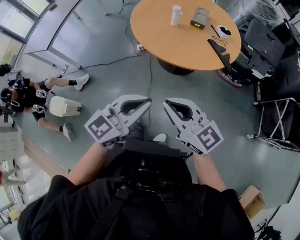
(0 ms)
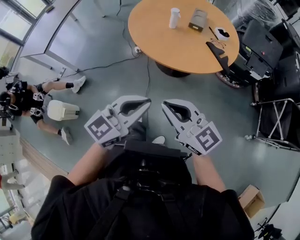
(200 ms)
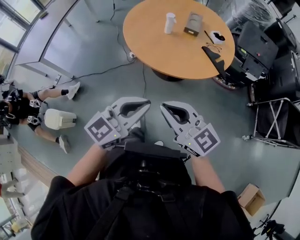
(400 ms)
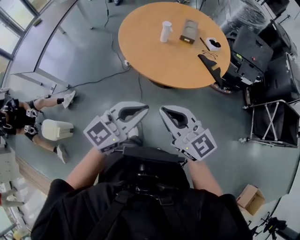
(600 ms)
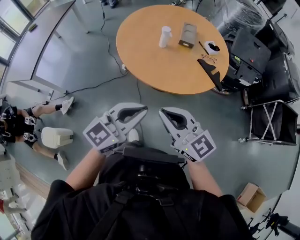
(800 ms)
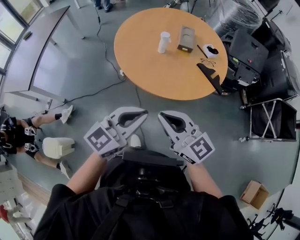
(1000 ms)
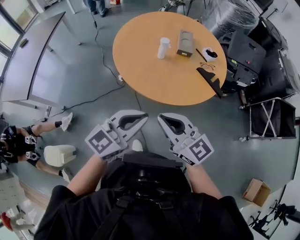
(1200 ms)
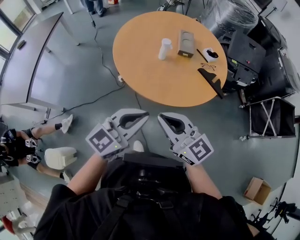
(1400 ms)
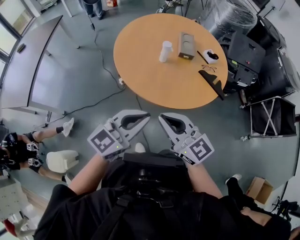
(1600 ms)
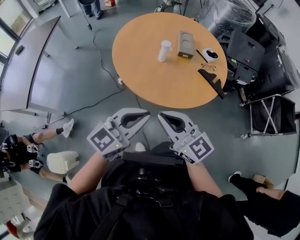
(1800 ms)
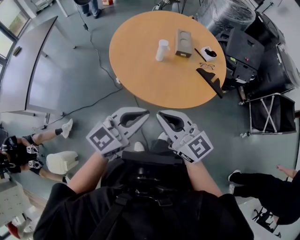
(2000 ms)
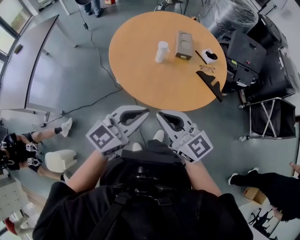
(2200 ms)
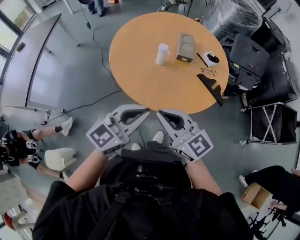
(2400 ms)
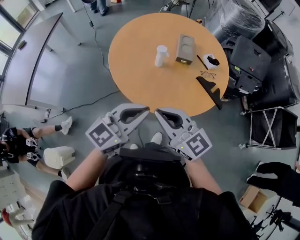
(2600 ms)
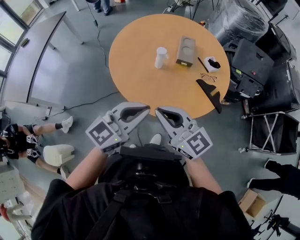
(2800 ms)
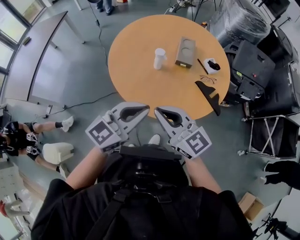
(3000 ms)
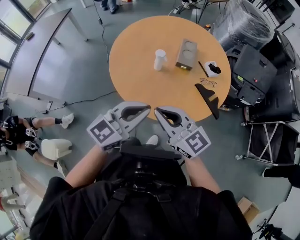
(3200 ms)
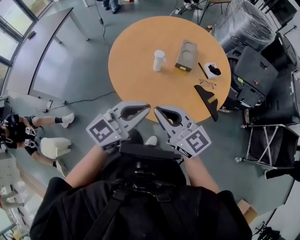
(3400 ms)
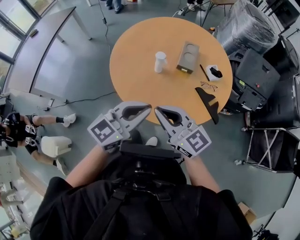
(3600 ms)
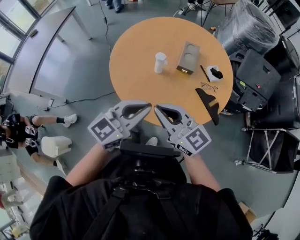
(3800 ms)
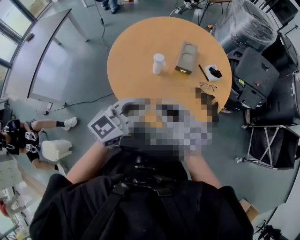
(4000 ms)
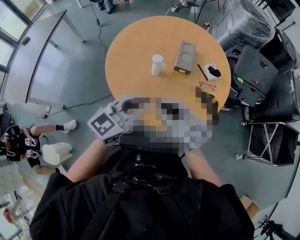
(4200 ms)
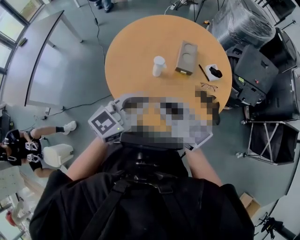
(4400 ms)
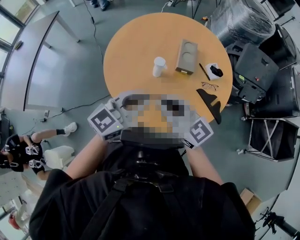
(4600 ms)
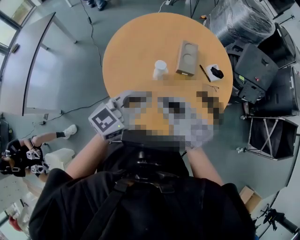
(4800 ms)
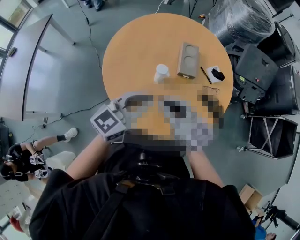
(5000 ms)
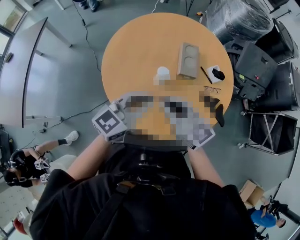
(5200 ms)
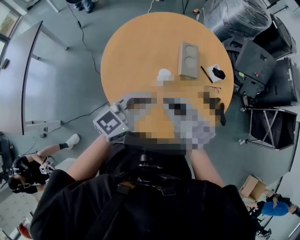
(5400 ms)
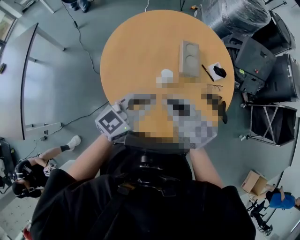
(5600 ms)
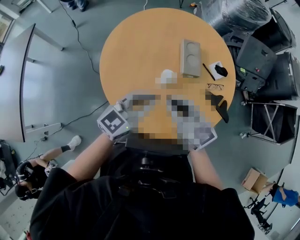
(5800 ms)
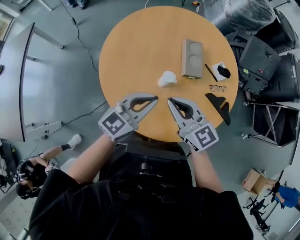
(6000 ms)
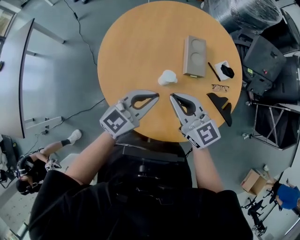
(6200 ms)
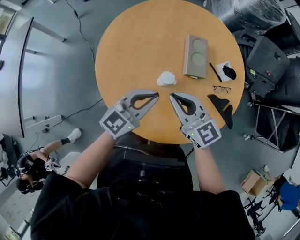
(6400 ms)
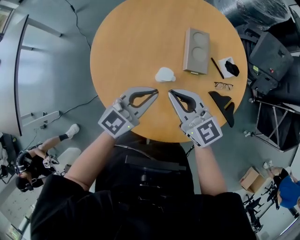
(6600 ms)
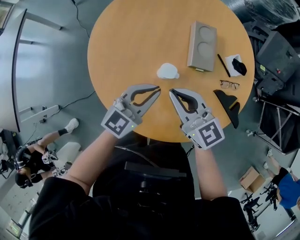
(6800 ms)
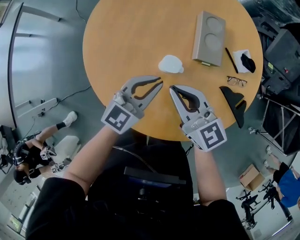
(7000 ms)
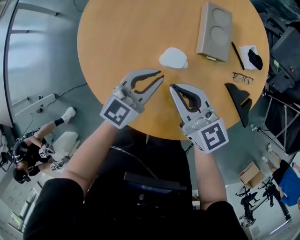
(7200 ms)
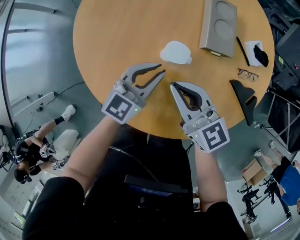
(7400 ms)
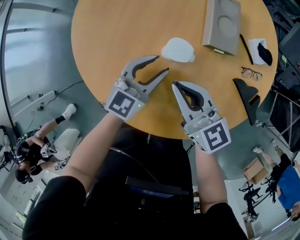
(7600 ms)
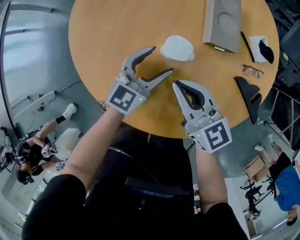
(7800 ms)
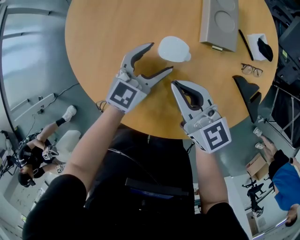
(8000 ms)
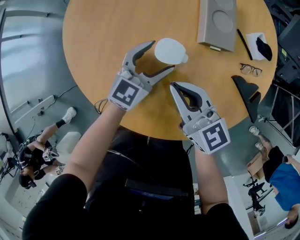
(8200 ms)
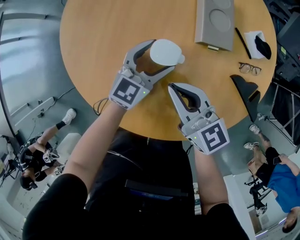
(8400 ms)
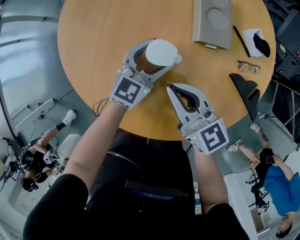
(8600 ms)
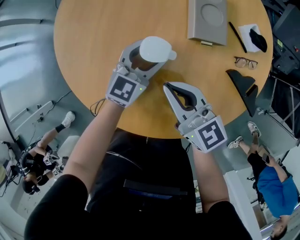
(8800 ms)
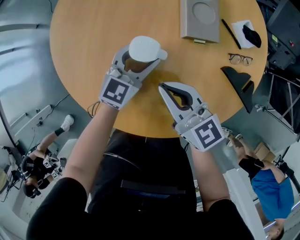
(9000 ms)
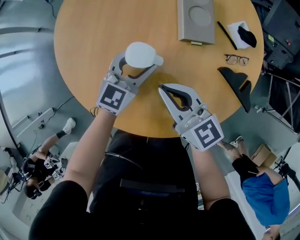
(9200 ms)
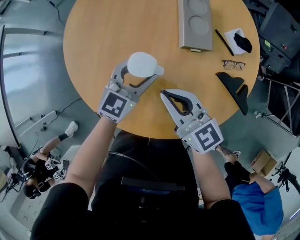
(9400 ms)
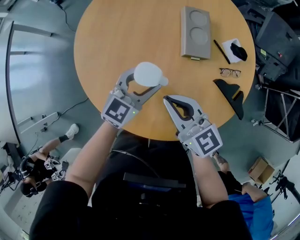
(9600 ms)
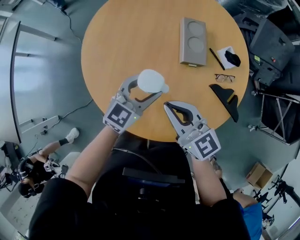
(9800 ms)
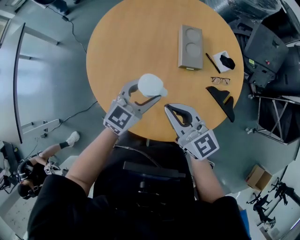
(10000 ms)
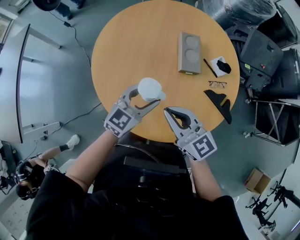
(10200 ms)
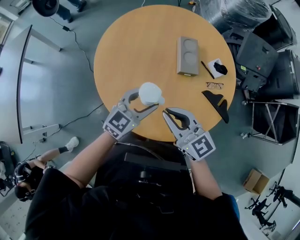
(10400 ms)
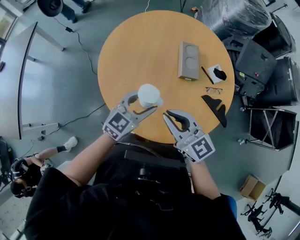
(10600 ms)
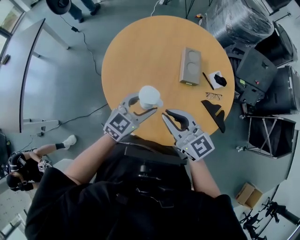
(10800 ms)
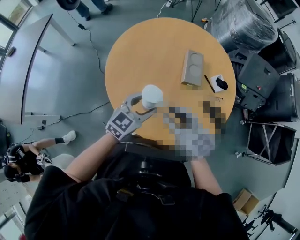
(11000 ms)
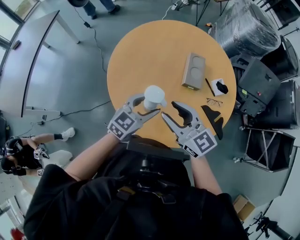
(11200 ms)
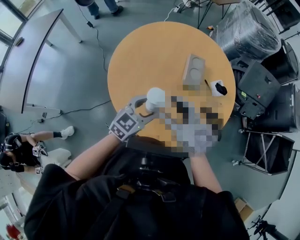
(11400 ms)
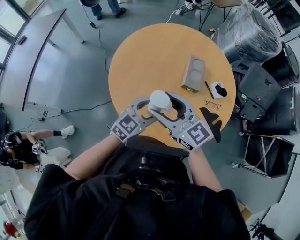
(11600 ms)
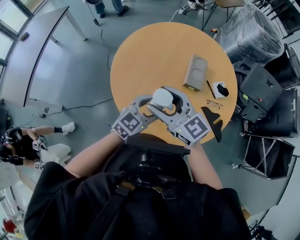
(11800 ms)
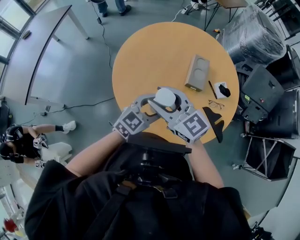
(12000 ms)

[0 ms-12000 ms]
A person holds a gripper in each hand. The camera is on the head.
0 ms to 1600 ms: The grippers both shift forward and to the left by roughly 35 cm.
1600 ms to 3000 ms: The two grippers go approximately 20 cm forward and to the right.
3000 ms to 4400 ms: Both grippers travel together forward, roughly 15 cm.
4400 ms to 6000 ms: The left gripper goes some 25 cm forward, to the left and downward. Meanwhile the right gripper heads forward, downward and to the left, covering approximately 25 cm.
6000 ms to 7600 ms: Both grippers move downward, roughly 30 cm. The left gripper opens its fingers.
7600 ms to 9000 ms: The left gripper shifts approximately 5 cm to the right.
9000 ms to 10400 ms: Both grippers travel together upward and backward, approximately 30 cm.
10400 ms to 12000 ms: The left gripper shifts roughly 10 cm backward and upward; the right gripper travels upward by approximately 10 cm, rotates about 20 degrees, and opens its fingers.

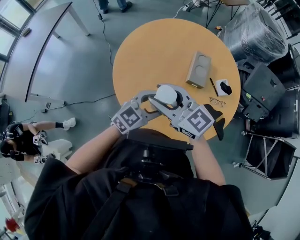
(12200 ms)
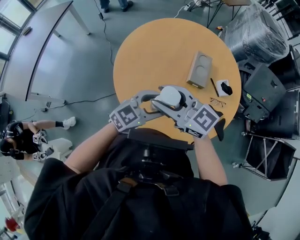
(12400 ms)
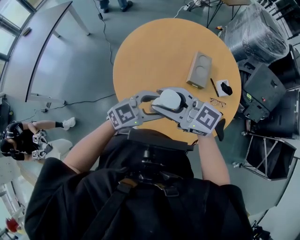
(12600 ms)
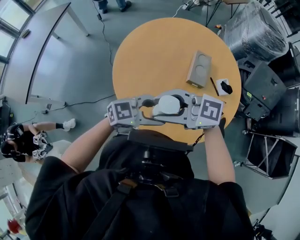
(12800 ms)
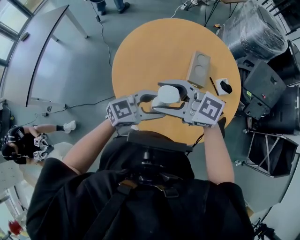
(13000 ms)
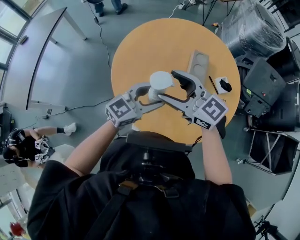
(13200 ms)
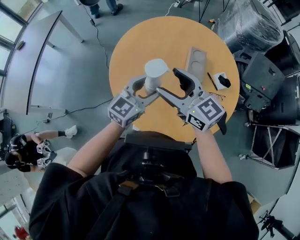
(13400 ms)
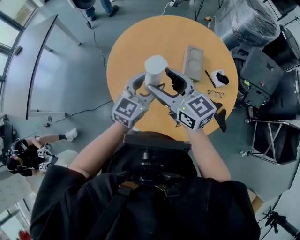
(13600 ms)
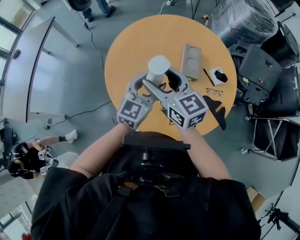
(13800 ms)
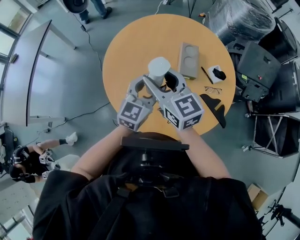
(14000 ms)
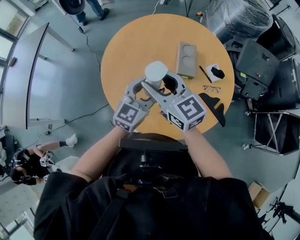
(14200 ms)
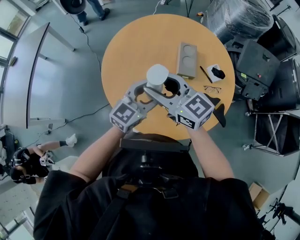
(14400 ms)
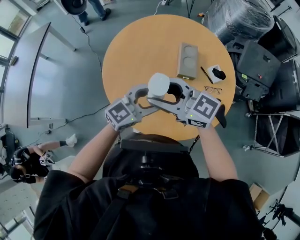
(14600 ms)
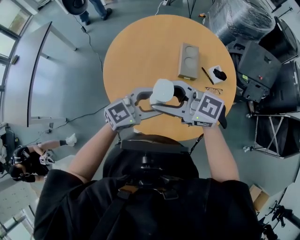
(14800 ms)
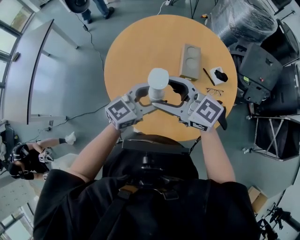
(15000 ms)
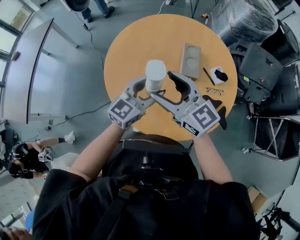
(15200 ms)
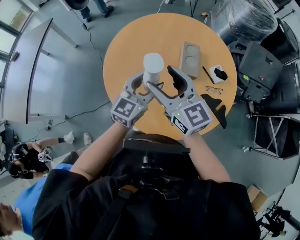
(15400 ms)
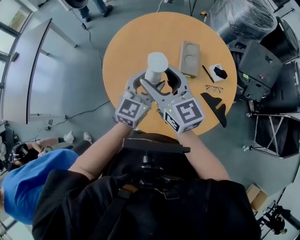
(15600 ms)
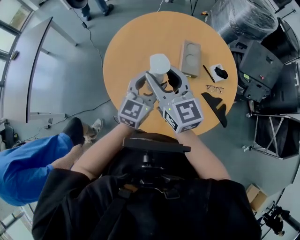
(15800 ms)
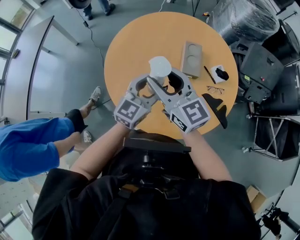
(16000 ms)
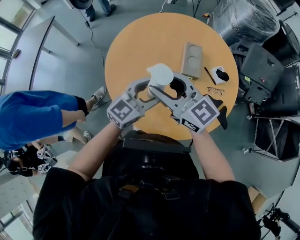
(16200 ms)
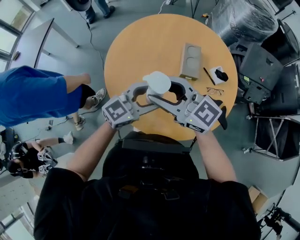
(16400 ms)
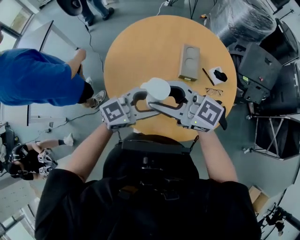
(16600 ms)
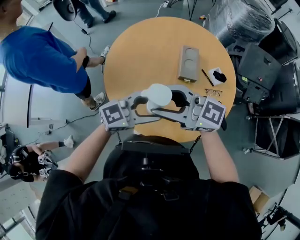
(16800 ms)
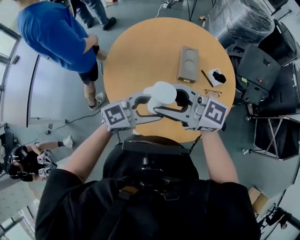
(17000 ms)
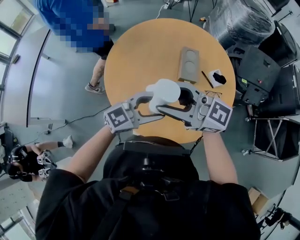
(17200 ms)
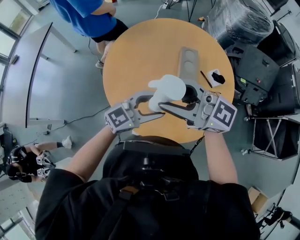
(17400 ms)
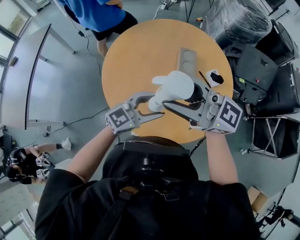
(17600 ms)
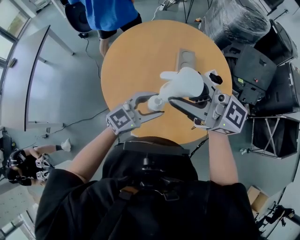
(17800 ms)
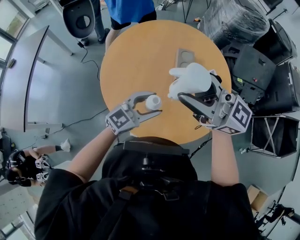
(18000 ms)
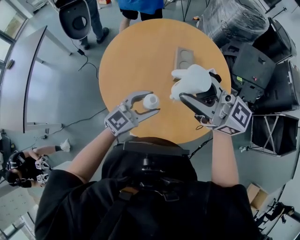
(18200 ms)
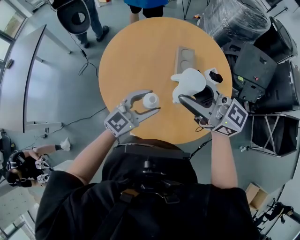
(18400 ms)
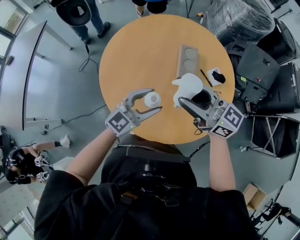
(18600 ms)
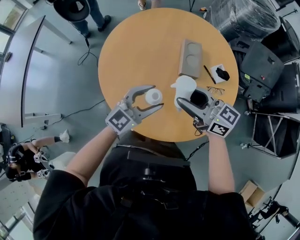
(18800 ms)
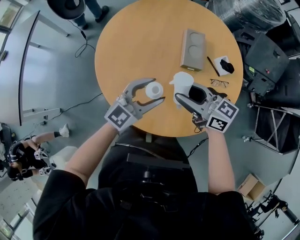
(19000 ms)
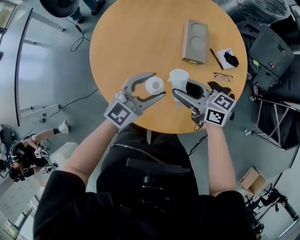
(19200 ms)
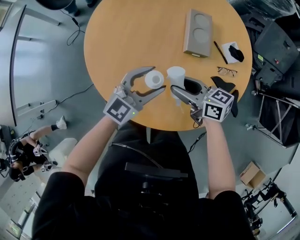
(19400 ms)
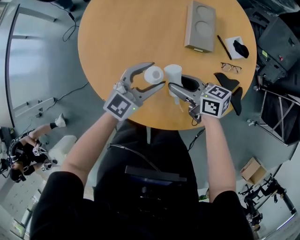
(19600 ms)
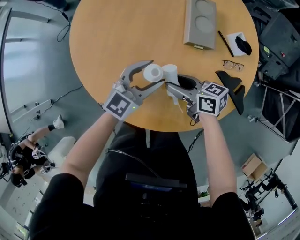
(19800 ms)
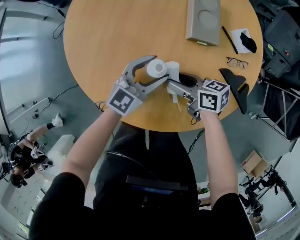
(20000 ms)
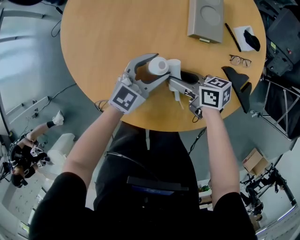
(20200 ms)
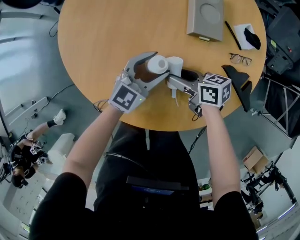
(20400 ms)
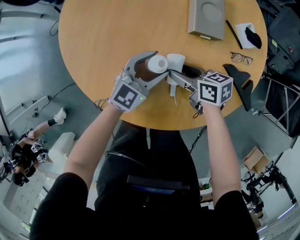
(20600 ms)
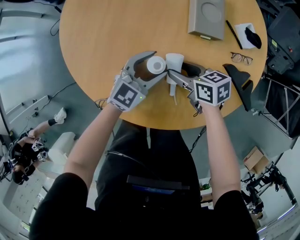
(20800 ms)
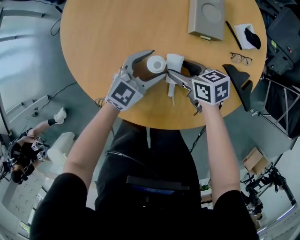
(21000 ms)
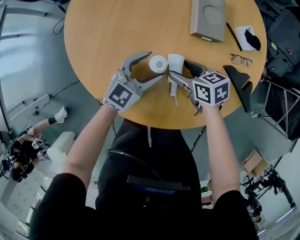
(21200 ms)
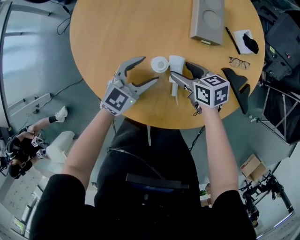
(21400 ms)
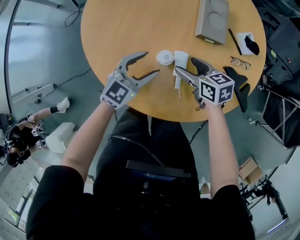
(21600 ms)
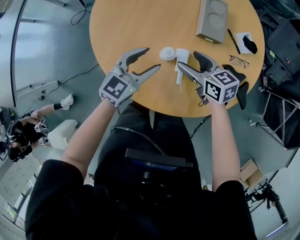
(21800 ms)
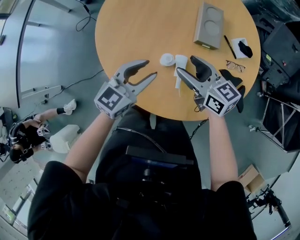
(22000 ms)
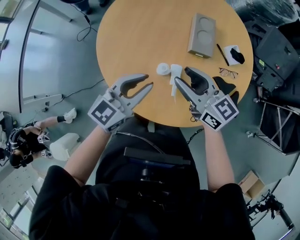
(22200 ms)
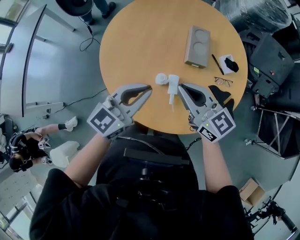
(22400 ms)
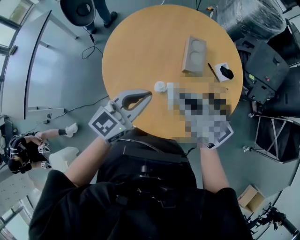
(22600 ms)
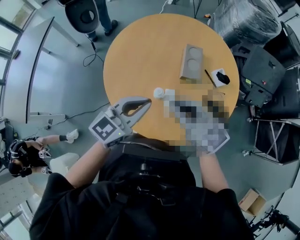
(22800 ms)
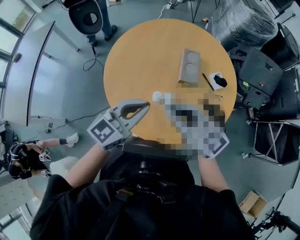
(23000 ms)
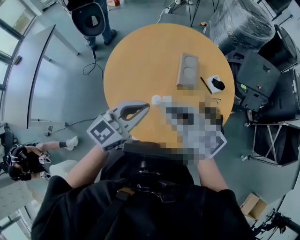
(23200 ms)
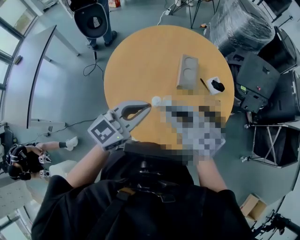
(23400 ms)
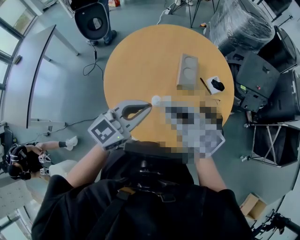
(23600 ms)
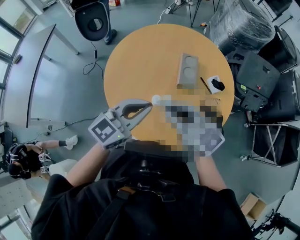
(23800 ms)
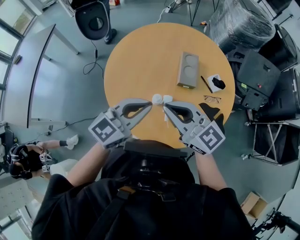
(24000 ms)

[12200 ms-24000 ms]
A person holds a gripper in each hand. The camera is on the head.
12200 ms to 13600 ms: The left gripper moves roughly 10 cm, while the right gripper moves about 10 cm, and opens.
15200 ms to 16600 ms: The left gripper ends up roughly 5 cm from where it was, and turns by approximately 20 degrees. Meanwhile the right gripper changes place by about 5 cm, and swivels roughly 20 degrees.
16600 ms to 18200 ms: The right gripper goes some 10 cm upward.
18200 ms to 19600 ms: The left gripper shifts approximately 25 cm downward and forward; the right gripper moves downward, some 50 cm, and points its fingers some 30 degrees further downward.
19600 ms to 21000 ms: Both grippers move downward, some 15 cm. The right gripper turns by approximately 20 degrees.
21000 ms to 22600 ms: Both grippers move upward, some 40 cm. The left gripper closes its fingers, while the right gripper angles its fingers upward, by about 40 degrees, and closes.
22600 ms to 24000 ms: Both grippers move upward, some 10 cm.
